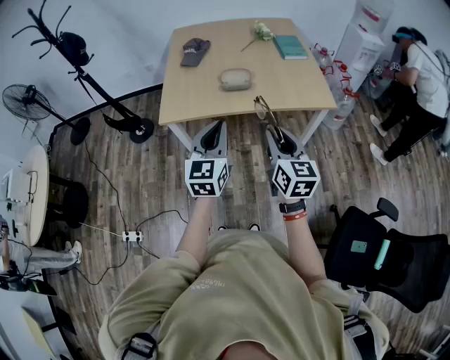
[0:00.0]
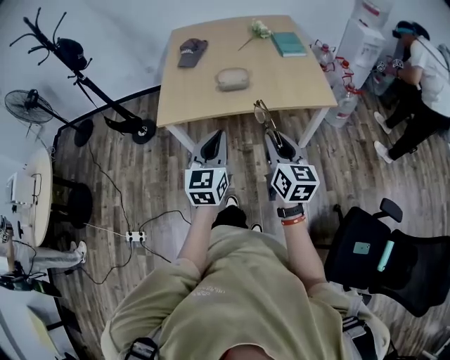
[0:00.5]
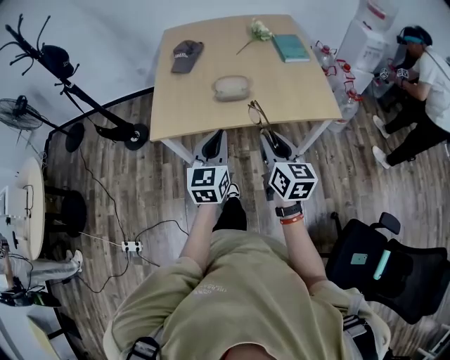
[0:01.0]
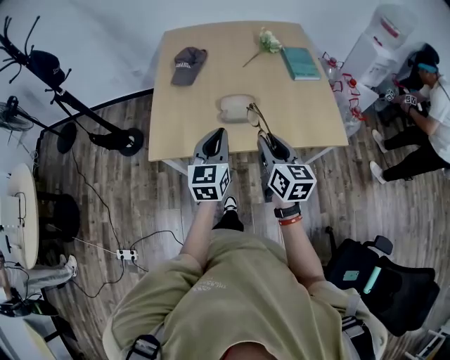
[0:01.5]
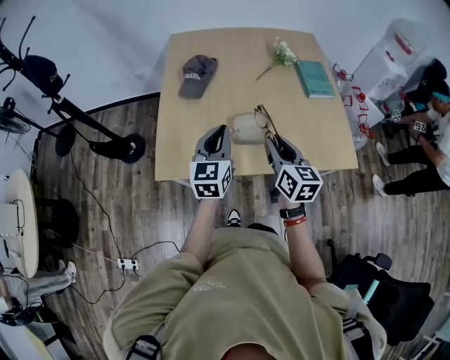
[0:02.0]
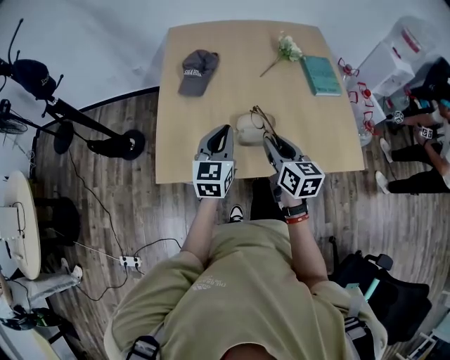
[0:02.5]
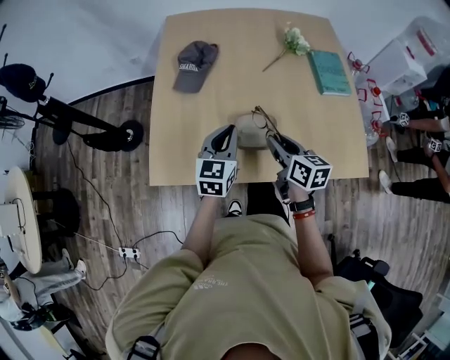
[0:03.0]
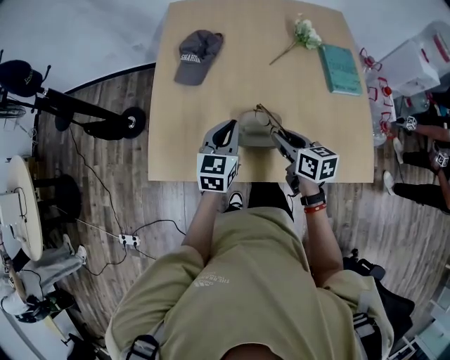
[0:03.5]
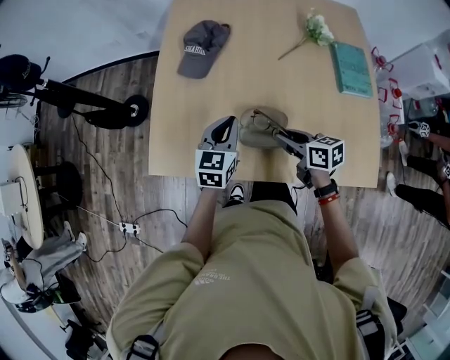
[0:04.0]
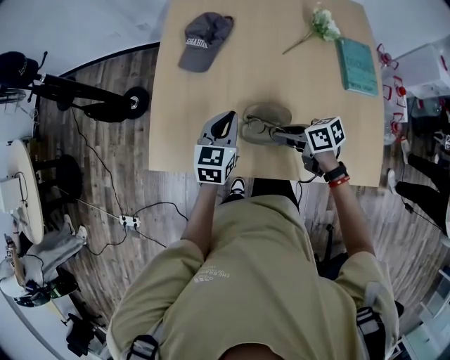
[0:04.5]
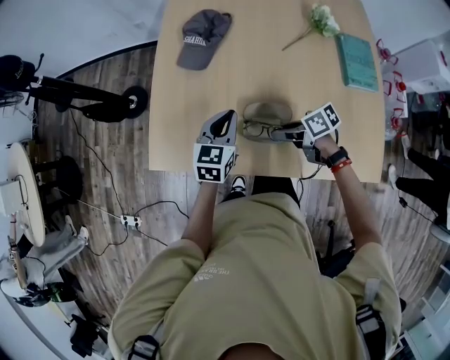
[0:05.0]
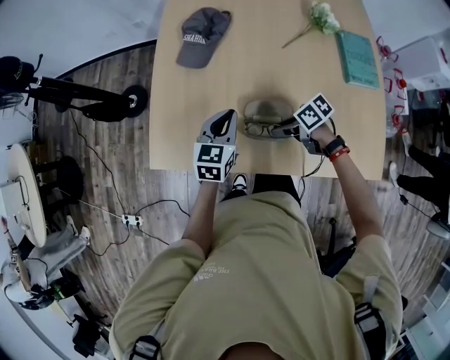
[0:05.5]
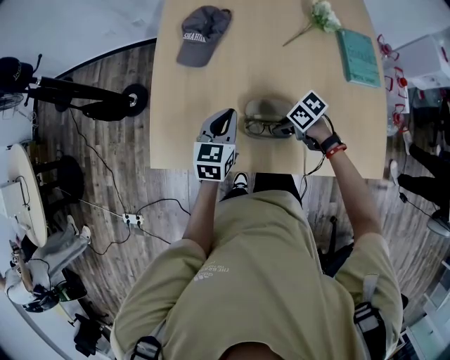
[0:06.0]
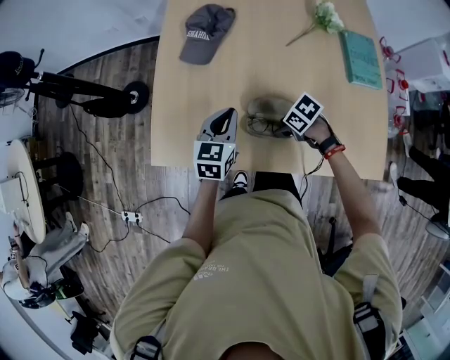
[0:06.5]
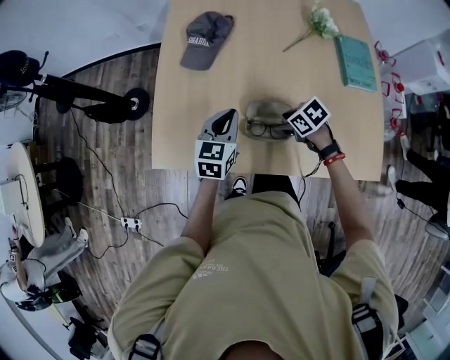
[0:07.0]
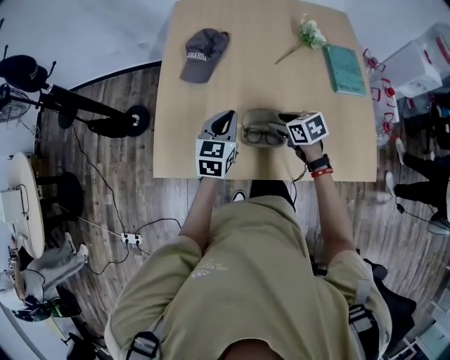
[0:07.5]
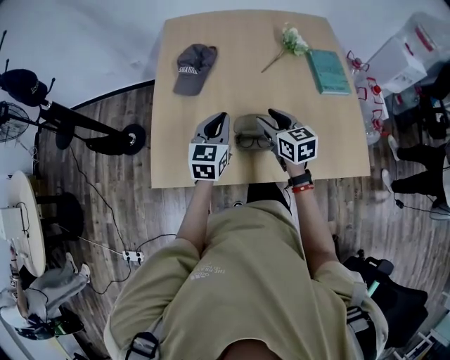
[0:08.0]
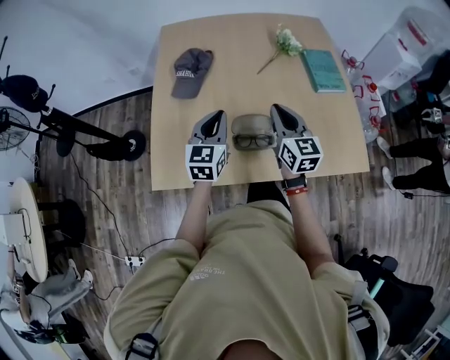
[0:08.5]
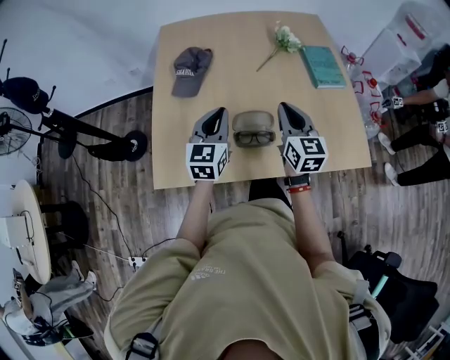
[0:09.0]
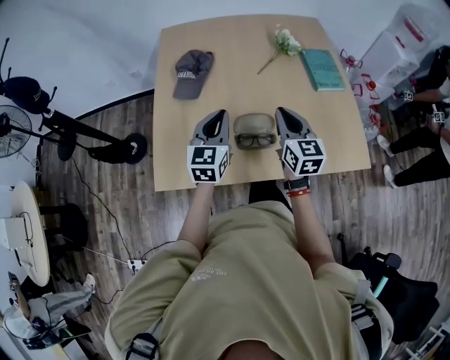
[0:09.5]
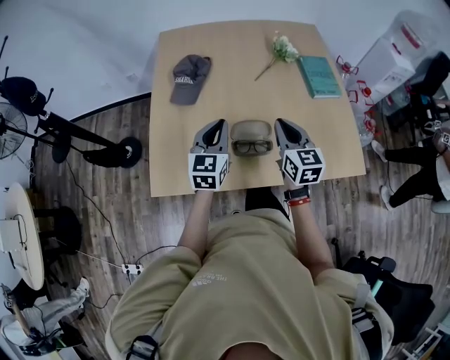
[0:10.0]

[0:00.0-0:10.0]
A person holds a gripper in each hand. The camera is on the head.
0:00.0 to 0:02.0: The two grippers travel together, forward, roughly 40 cm.
0:02.0 to 0:04.0: The left gripper travels forward and downward by some 20 cm, while the right gripper goes about 25 cm downward and forward, and turns by some 50 degrees.
0:04.0 to 0:06.0: The right gripper moves downward, approximately 10 cm, and swivels roughly 40 degrees.
0:06.0 to 0:08.0: The right gripper moves upward, about 15 cm, and turns by about 70 degrees; the left gripper shifts some 10 cm upward.
0:08.0 to 0:10.0: The right gripper heads upward, covering roughly 5 cm, and closes.

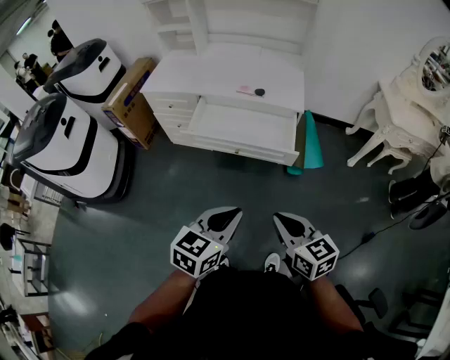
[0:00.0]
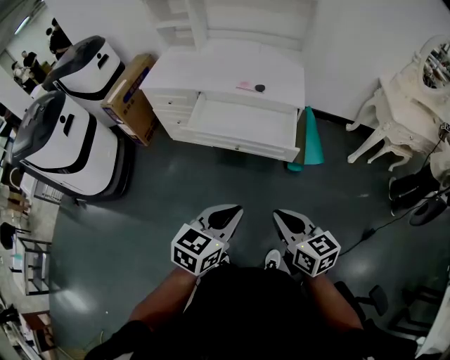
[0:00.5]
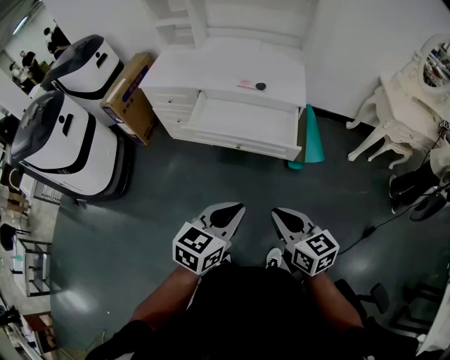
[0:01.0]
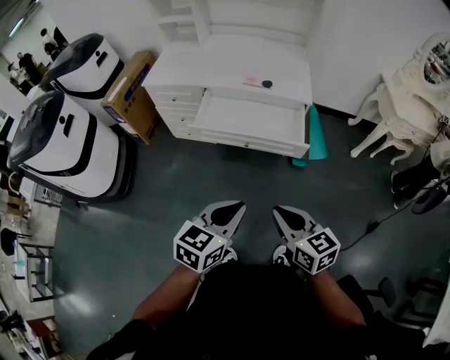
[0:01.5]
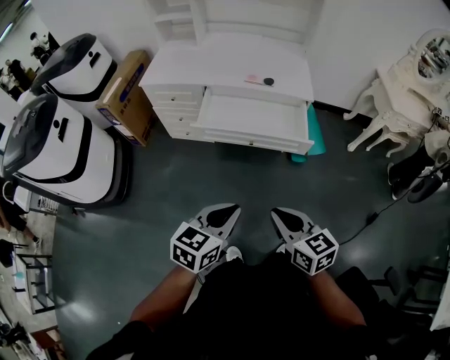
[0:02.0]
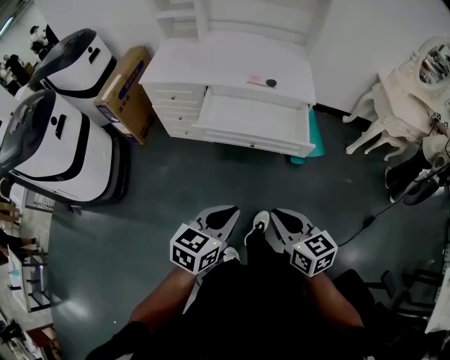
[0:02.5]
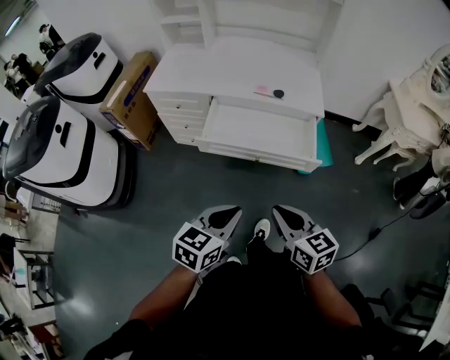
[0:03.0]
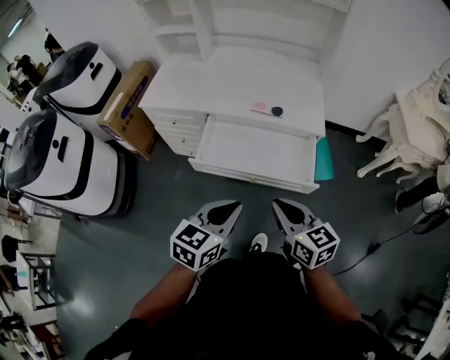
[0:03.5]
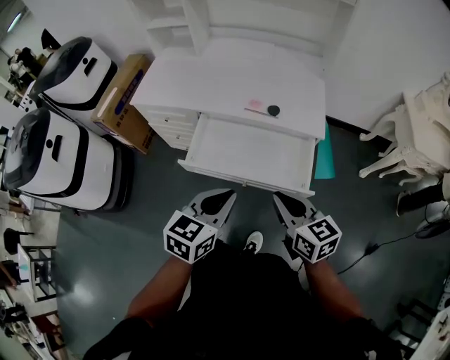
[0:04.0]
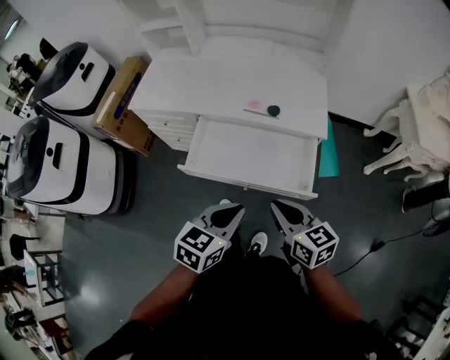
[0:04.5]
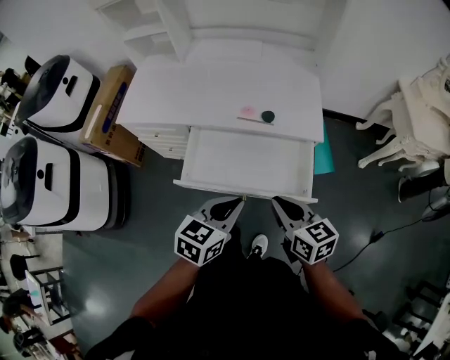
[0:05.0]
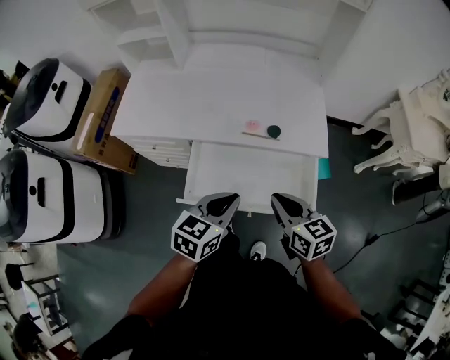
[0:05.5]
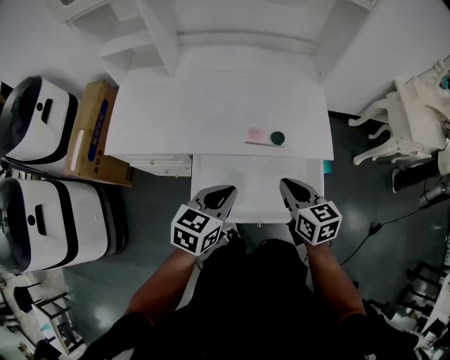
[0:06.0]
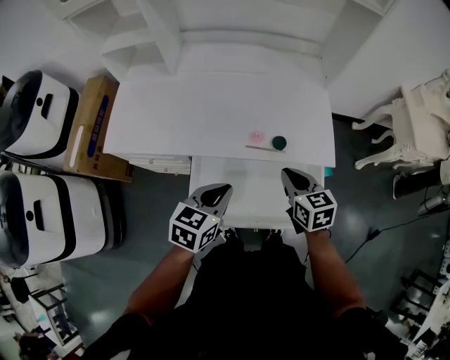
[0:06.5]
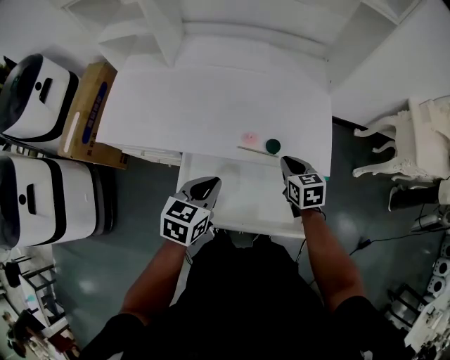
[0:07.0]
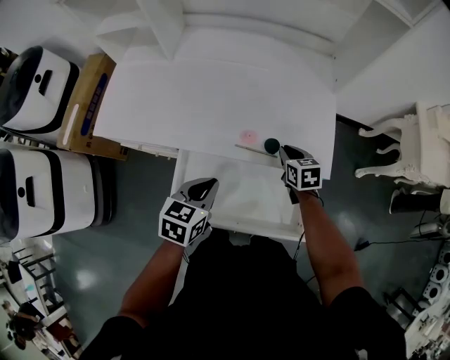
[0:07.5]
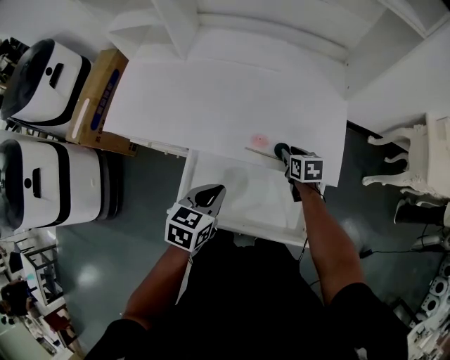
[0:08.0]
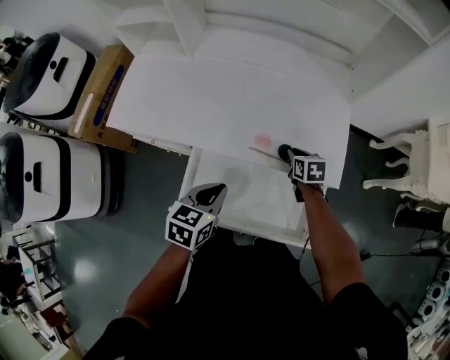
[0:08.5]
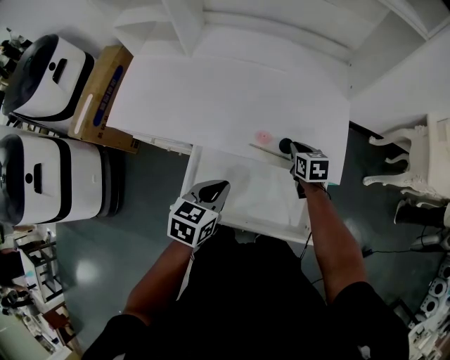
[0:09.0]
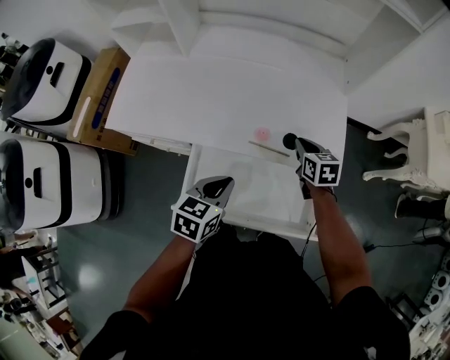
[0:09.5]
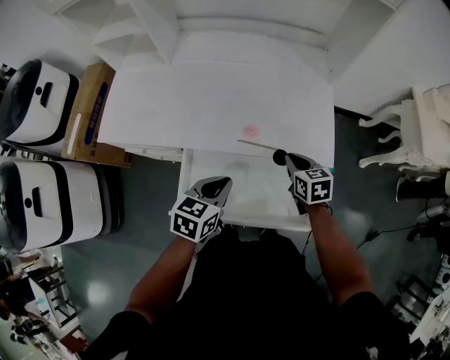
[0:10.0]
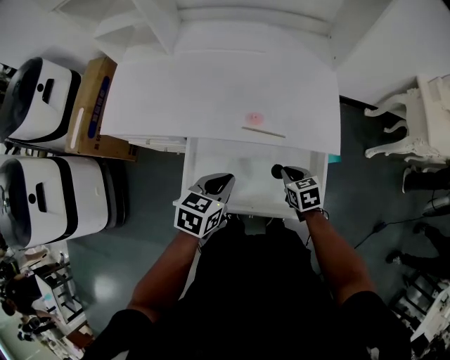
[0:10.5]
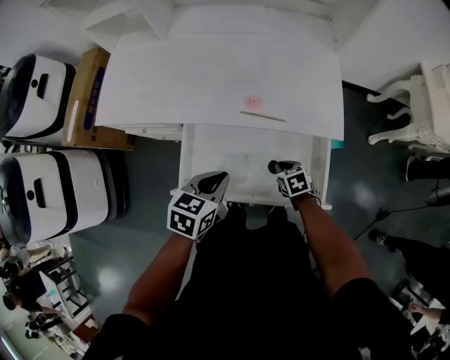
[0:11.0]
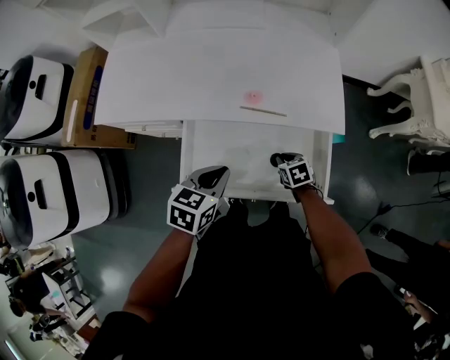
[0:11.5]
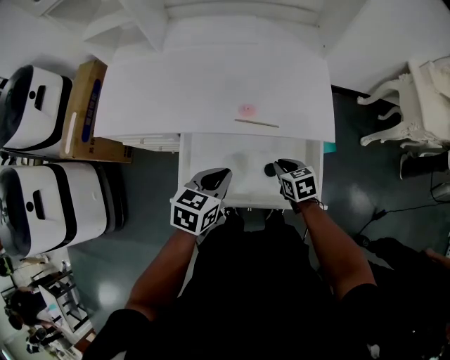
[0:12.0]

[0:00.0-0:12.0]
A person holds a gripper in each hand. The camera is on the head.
0:00.0 to 0:02.0: The grippers both shift to the left by approximately 10 cm.
0:02.0 to 0:04.0: The two grippers go approximately 25 cm forward.
0:04.0 to 0:06.0: The right gripper goes roughly 20 cm forward. Meanwhile the left gripper travels forward and to the left by about 25 cm.
0:06.0 to 0:08.0: The left gripper moves downward, approximately 5 cm. The right gripper is displaced forward and downward by approximately 25 cm, changes its angle by some 20 degrees, and opens up.
0:08.0 to 0:10.0: The right gripper travels backward and upward by about 10 cm, and closes its fingers.
0:10.0 to 0:12.0: The right gripper goes some 10 cm backward and downward.

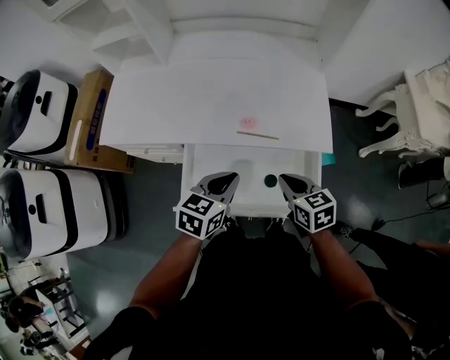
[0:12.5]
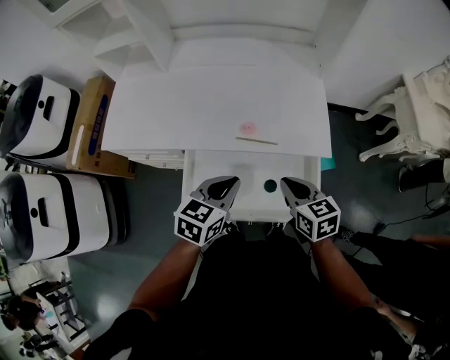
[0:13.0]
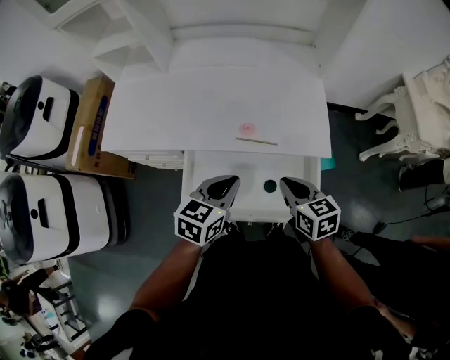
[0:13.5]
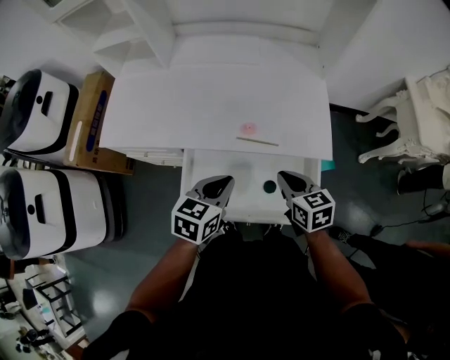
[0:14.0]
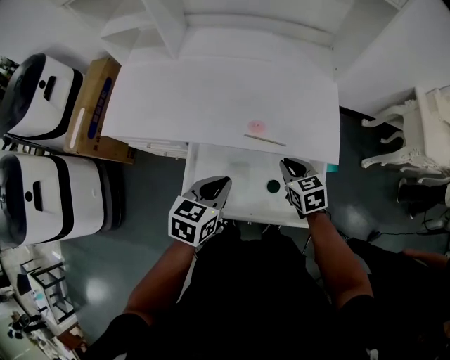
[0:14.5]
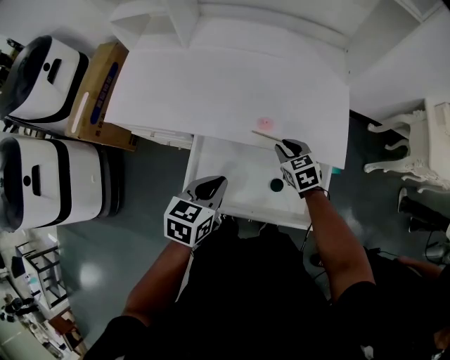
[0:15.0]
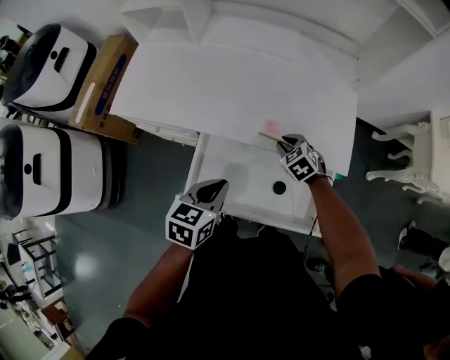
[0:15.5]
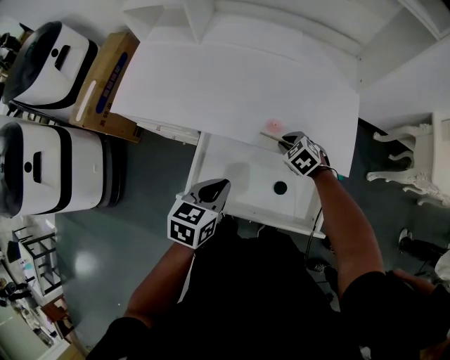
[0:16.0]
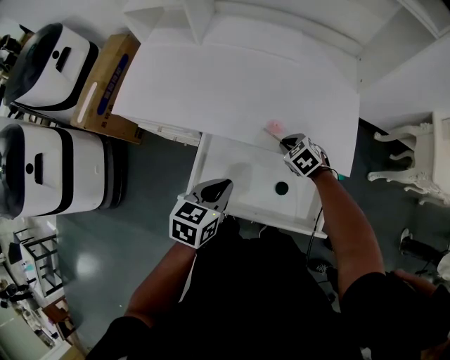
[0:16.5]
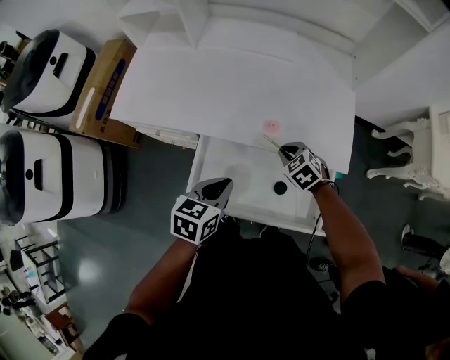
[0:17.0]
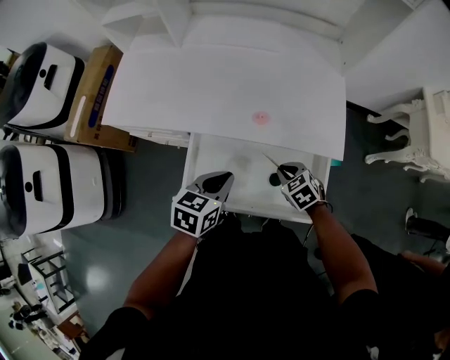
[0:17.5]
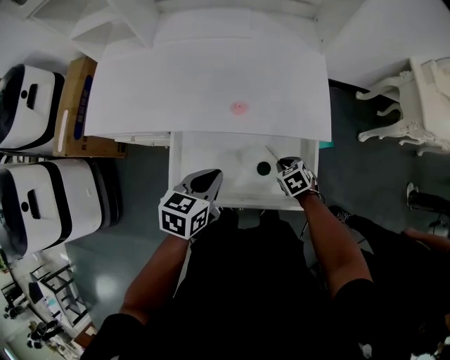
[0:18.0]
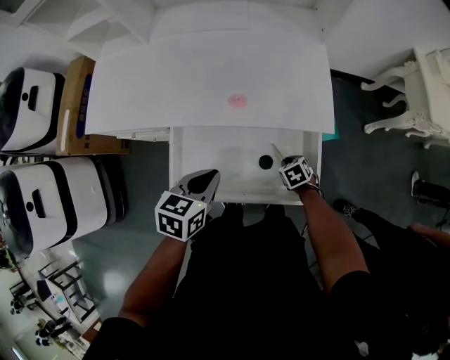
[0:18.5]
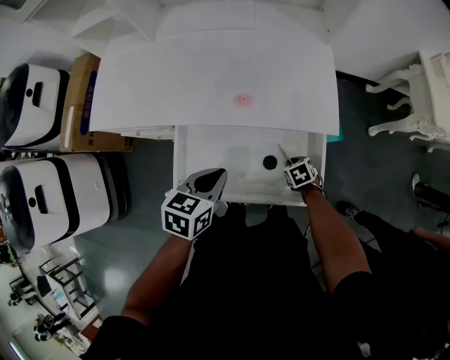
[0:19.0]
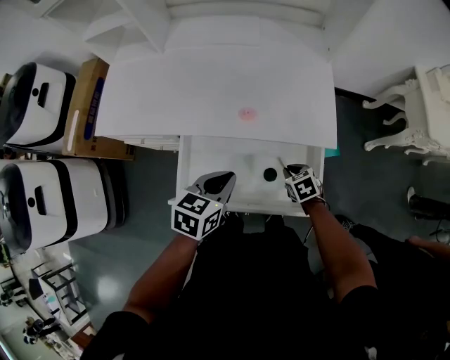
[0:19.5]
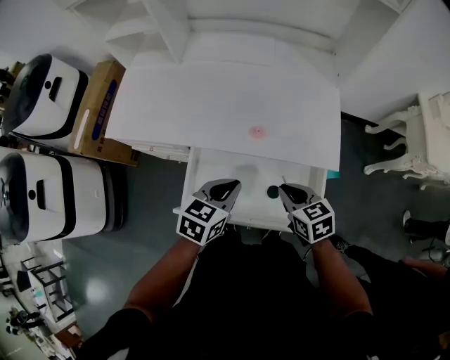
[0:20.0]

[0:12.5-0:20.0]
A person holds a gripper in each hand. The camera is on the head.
0:12.5 to 0:14.5: The right gripper travels forward by some 10 cm.
0:14.5 to 0:16.5: The right gripper goes about 10 cm downward and forward, and swivels some 40 degrees.
0:16.5 to 0:18.0: The left gripper goes roughly 5 cm to the right. Meanwhile the right gripper travels backward, to the right and downward by some 20 cm, and swivels about 30 degrees.
0:18.0 to 0:20.0: The right gripper shifts some 20 cm upward, and swivels some 30 degrees.
